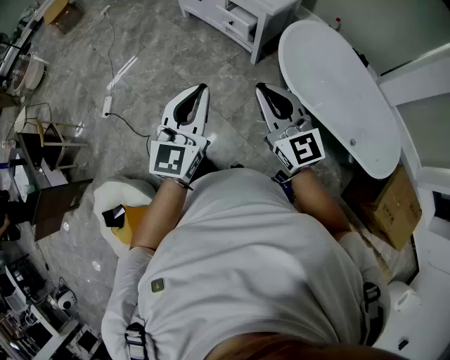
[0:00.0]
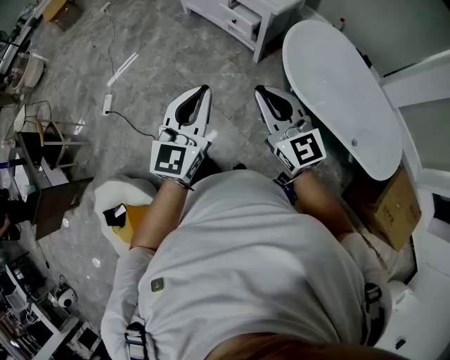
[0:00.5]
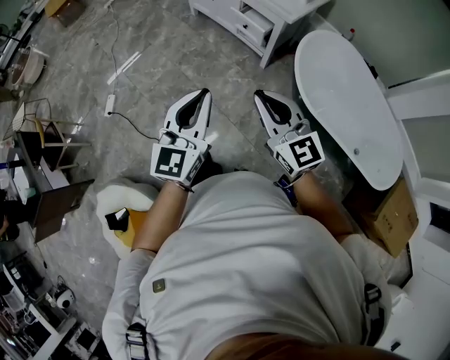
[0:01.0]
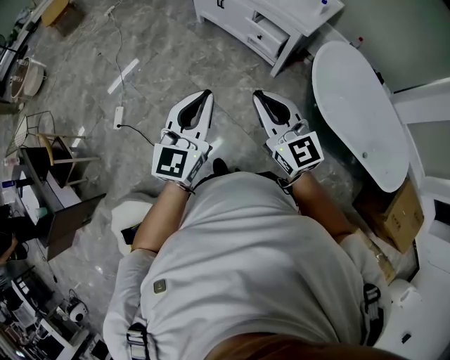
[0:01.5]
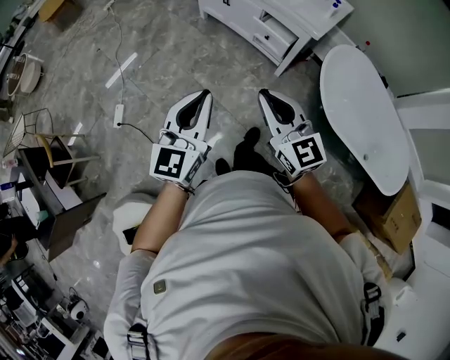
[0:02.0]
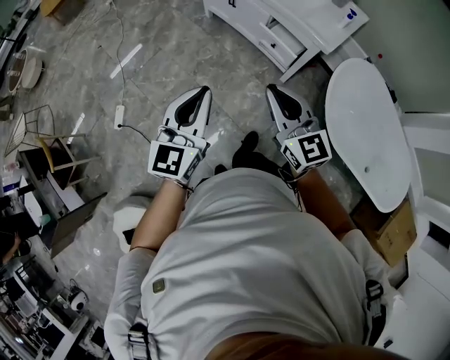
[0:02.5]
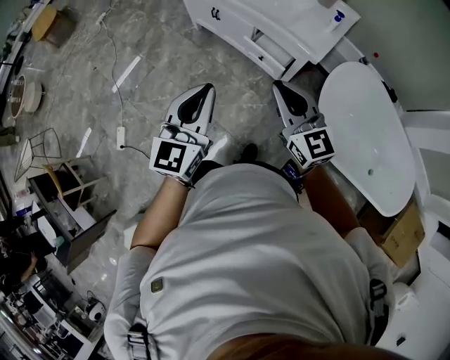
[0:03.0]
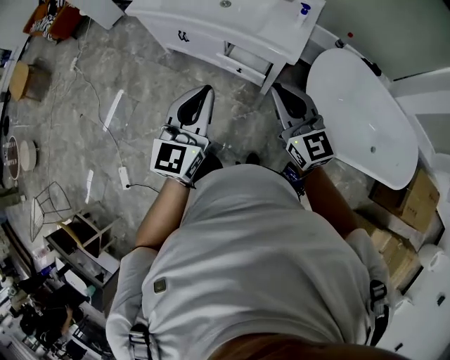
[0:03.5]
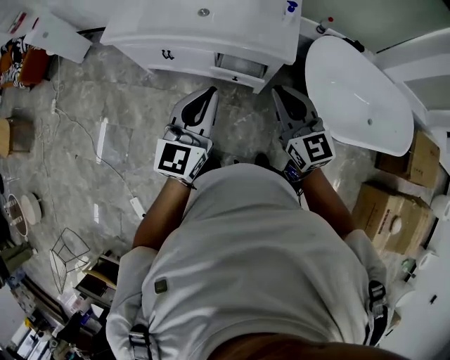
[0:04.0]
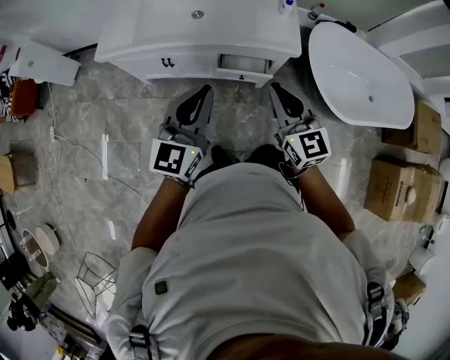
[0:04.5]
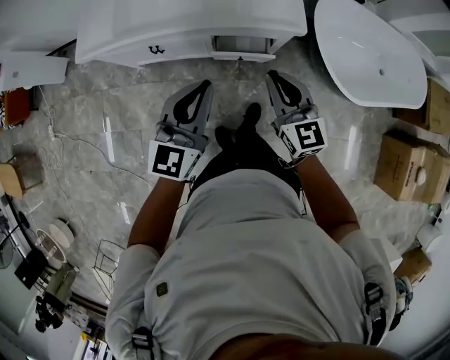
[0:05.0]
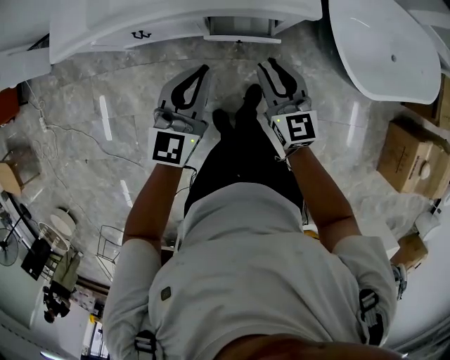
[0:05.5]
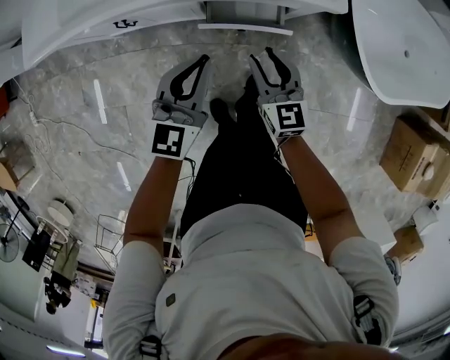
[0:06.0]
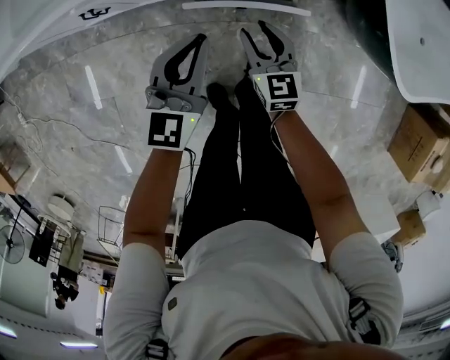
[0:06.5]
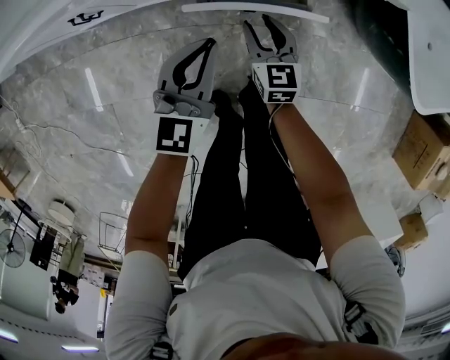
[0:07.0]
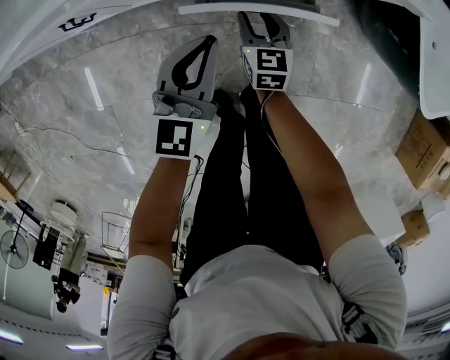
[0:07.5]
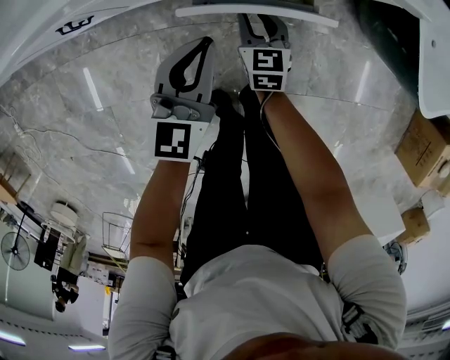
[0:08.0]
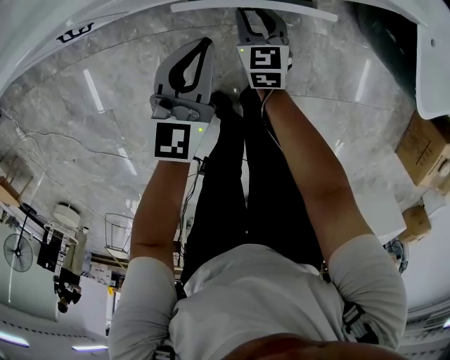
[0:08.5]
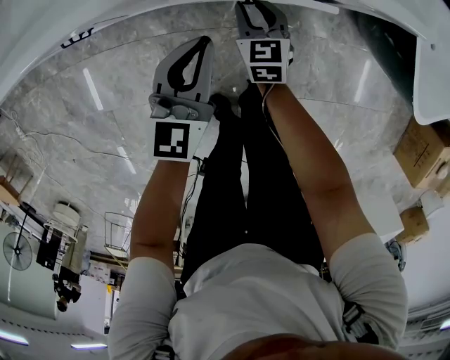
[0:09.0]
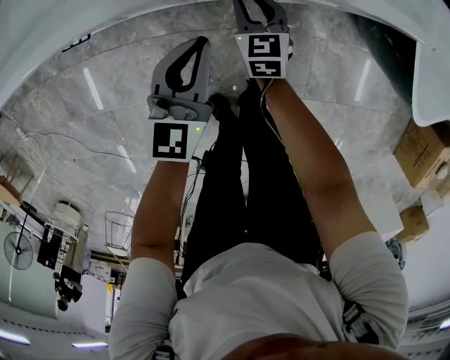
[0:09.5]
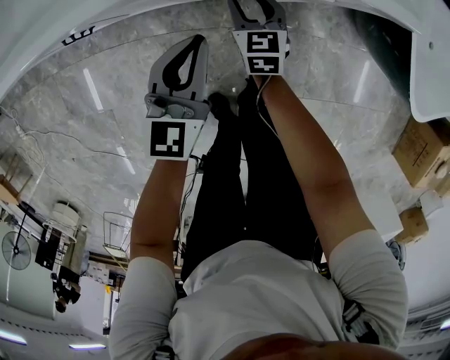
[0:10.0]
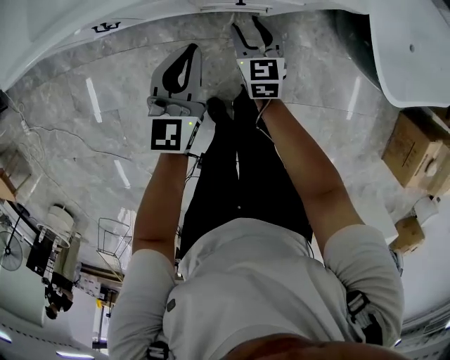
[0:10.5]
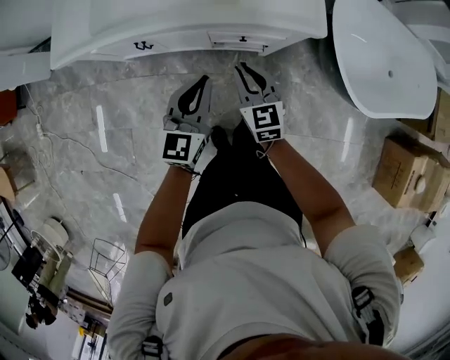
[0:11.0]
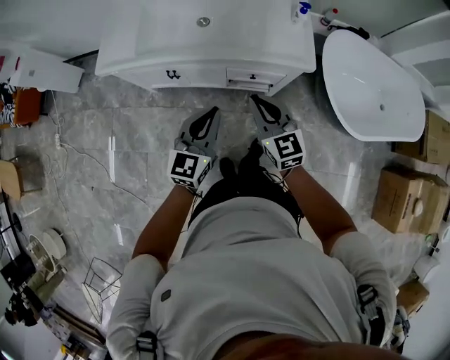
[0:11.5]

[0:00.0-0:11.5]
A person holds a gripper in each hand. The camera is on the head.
0:00.0 to 0:02.0: The two grippers go approximately 30 cm to the left and forward.
0:02.0 to 0:04.0: The two grippers travel together, roughly 40 cm. The left gripper changes its angle by some 30 degrees. Meanwhile the right gripper swivels approximately 30 degrees.
0:04.0 to 0:06.0: The right gripper goes some 40 cm downward, rotates some 30 degrees, and opens. Meanwhile the left gripper heads downward and forward, covering approximately 35 cm, and rotates roughly 20 degrees.
0:06.0 to 0:07.5: Both grippers move downward, some 25 cm.
0:07.5 to 0:09.5: The two grippers go roughly 5 cm forward.
0:09.5 to 0:11.5: Both grippers move upward and backward, roughly 50 cm. The right gripper rotates roughly 30 degrees, and closes its fingers.

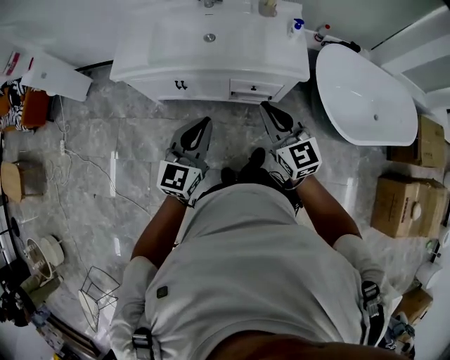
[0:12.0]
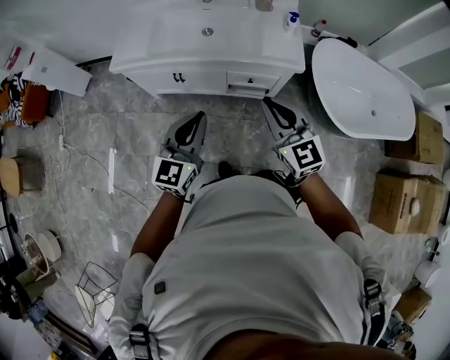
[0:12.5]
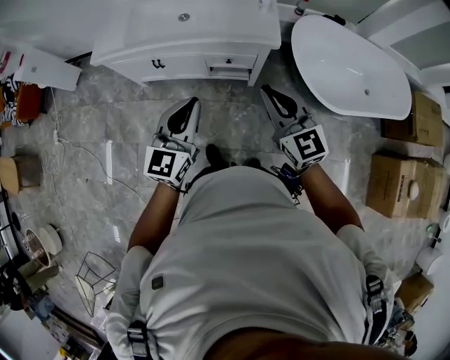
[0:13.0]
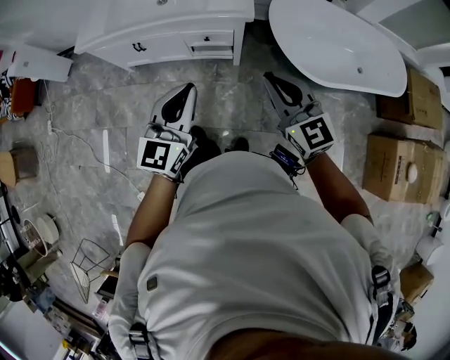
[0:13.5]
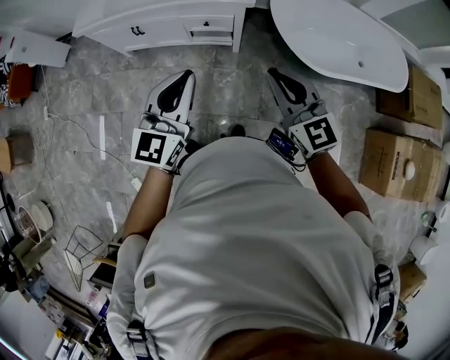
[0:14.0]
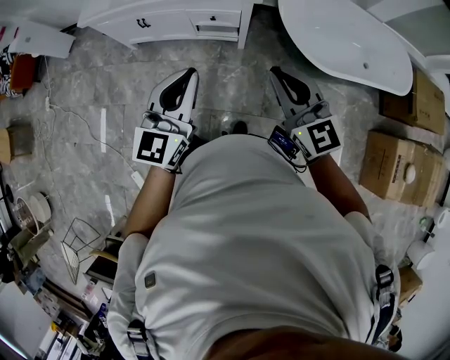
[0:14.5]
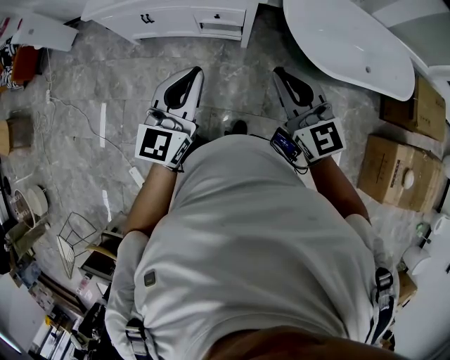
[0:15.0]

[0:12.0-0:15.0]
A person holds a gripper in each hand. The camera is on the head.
0:12.0 to 0:13.5: The grippers both shift to the right and backward by some 30 cm.
0:13.5 to 0:15.0: The grippers both shift backward by about 5 cm.

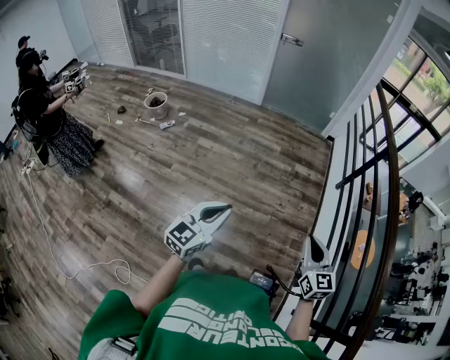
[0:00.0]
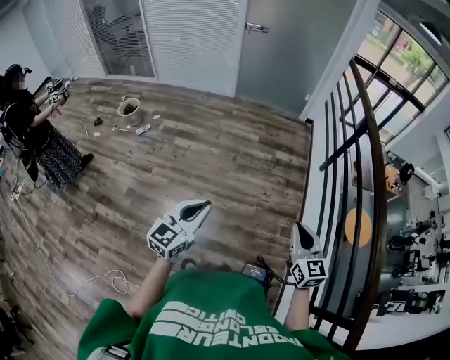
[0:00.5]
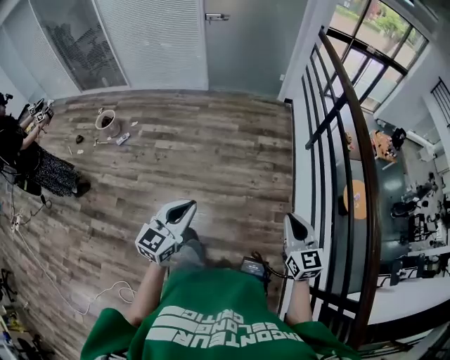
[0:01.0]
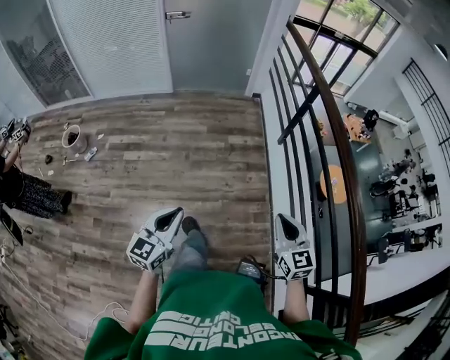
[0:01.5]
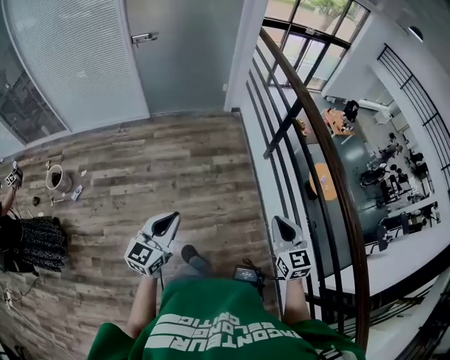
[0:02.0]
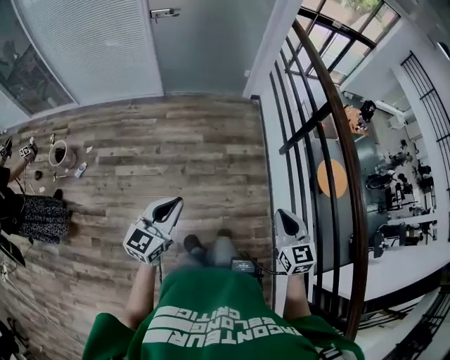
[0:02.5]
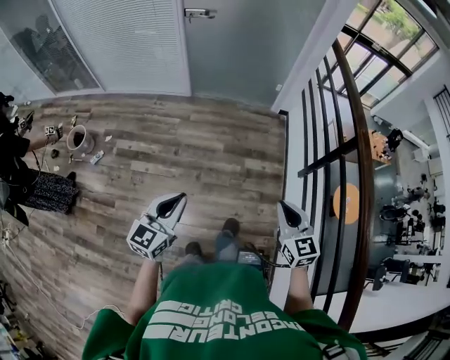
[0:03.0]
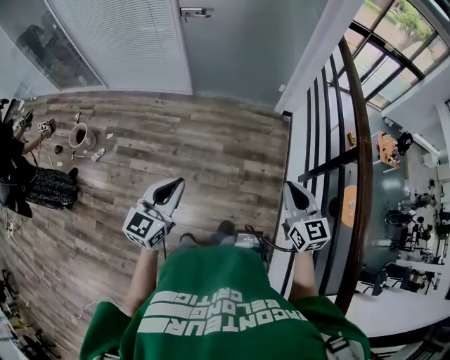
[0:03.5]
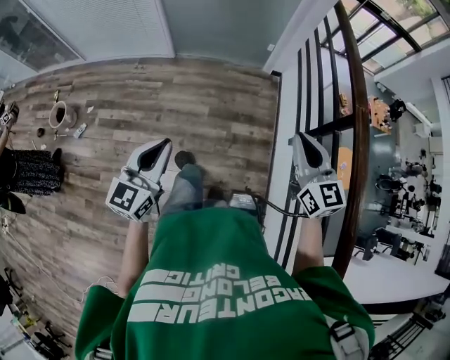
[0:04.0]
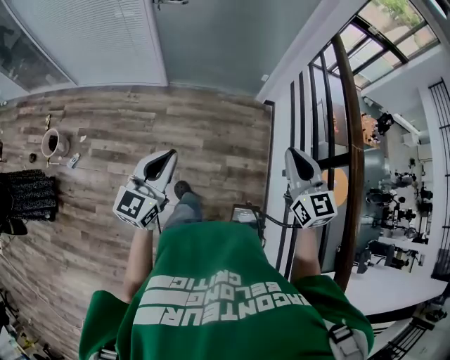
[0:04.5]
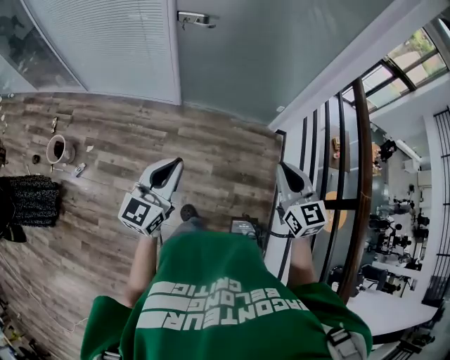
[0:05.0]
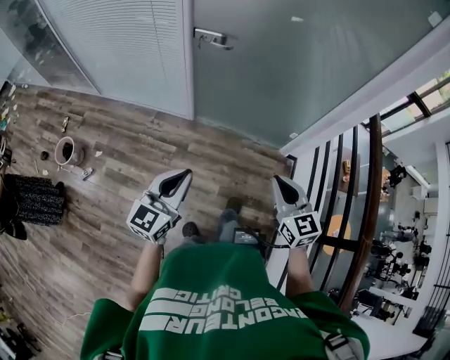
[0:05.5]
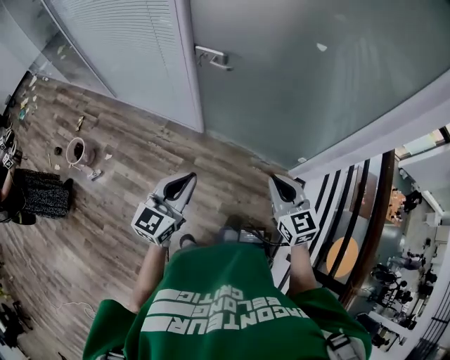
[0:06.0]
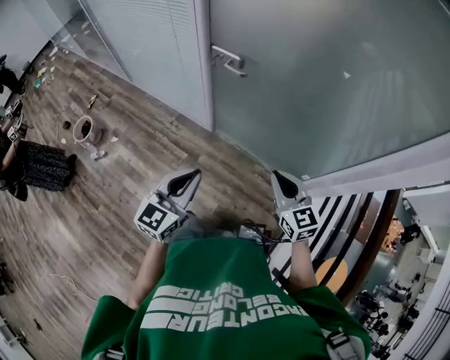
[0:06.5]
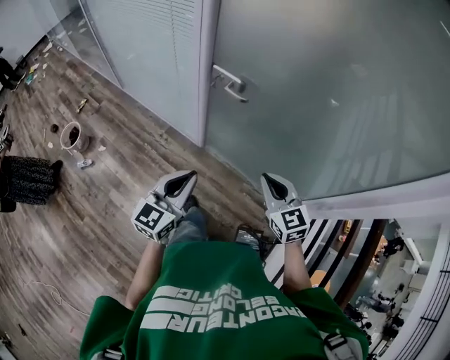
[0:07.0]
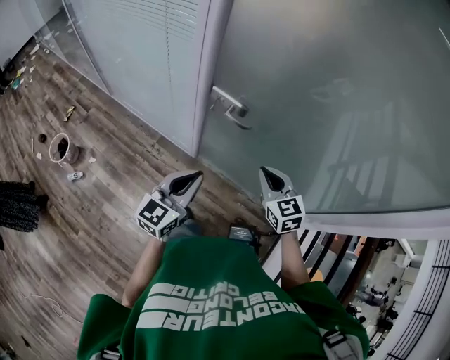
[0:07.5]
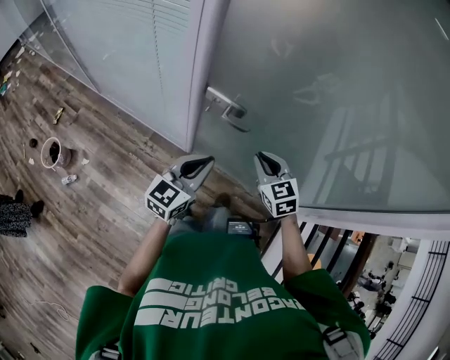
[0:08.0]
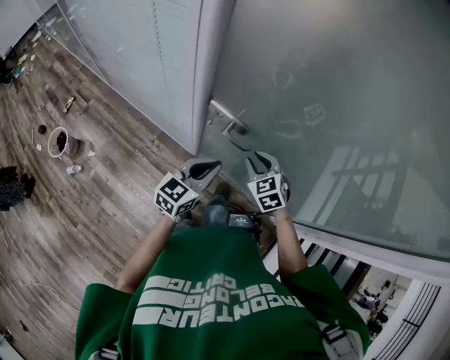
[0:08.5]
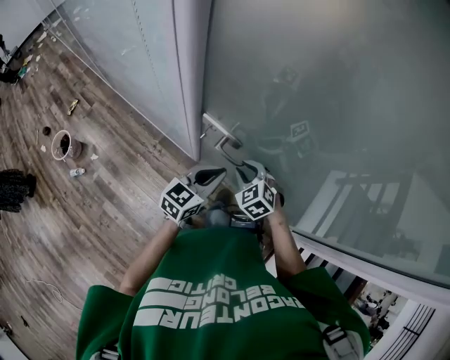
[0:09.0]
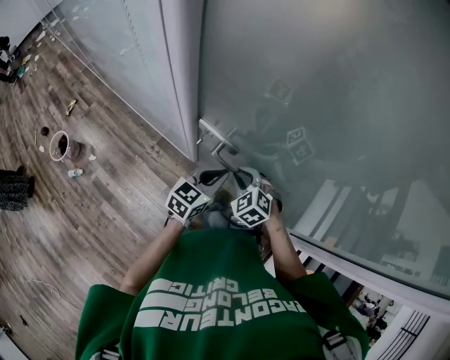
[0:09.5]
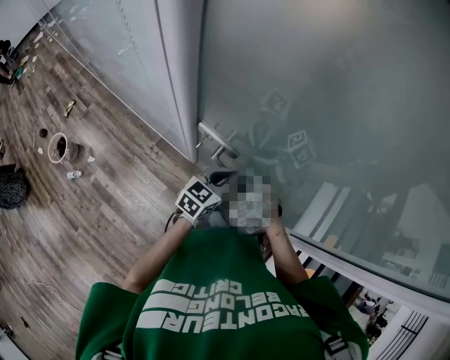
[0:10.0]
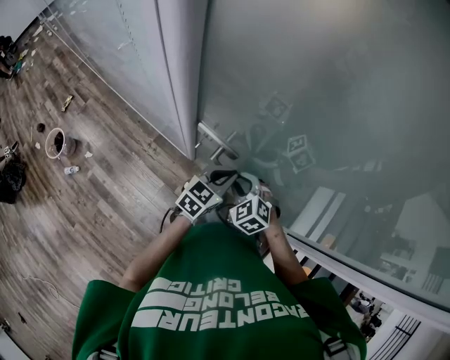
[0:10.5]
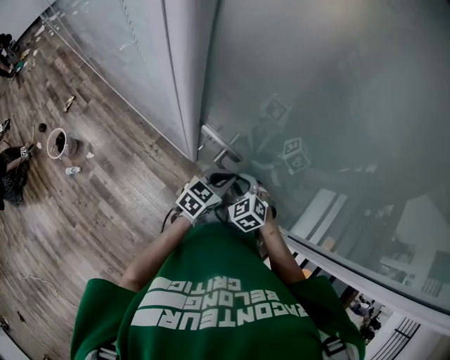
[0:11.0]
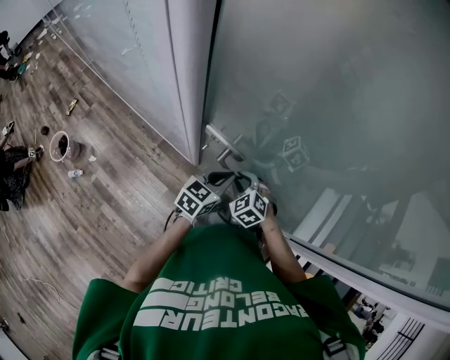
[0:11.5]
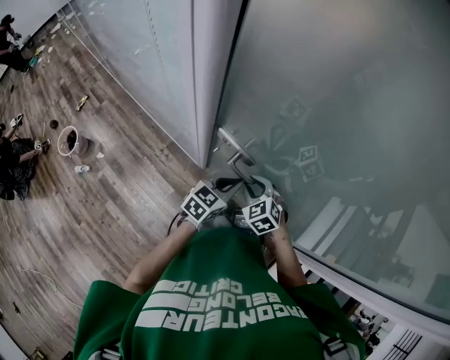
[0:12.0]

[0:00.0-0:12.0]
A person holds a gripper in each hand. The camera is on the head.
0:00.0 to 0:02.0: The left gripper heads forward, covering approximately 30 cm; the right gripper is displaced forward and to the right by some 25 cm.
0:02.0 to 0:04.0: Both grippers travel together forward, about 35 cm. The right gripper turns by about 20 degrees.
0:04.0 to 0:06.0: The pair of grippers is taken forward, approximately 50 cm. The right gripper swivels roughly 30 degrees.
0:06.0 to 0:08.0: Both grippers move forward, approximately 30 cm. The right gripper turns by roughly 20 degrees.
0:08.0 to 0:10.0: The left gripper goes roughly 20 cm forward, downward and to the right. The right gripper goes approximately 10 cm downward and forward, and turns by approximately 30 degrees.
0:10.0 to 0:12.0: The grippers stay close to where they were, moving slightly.
